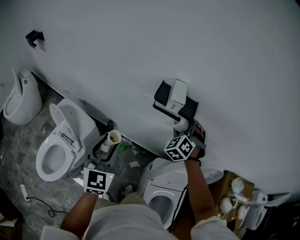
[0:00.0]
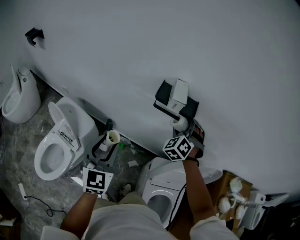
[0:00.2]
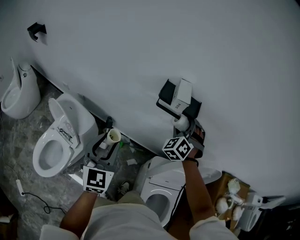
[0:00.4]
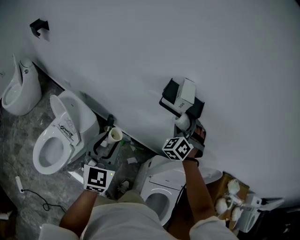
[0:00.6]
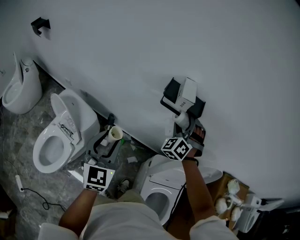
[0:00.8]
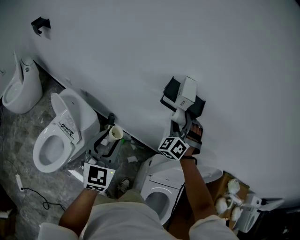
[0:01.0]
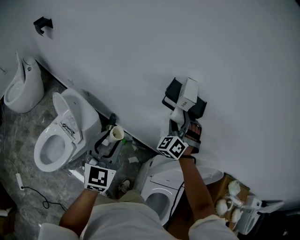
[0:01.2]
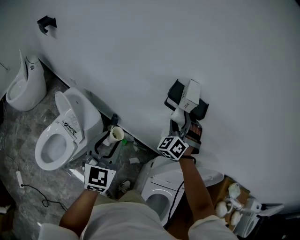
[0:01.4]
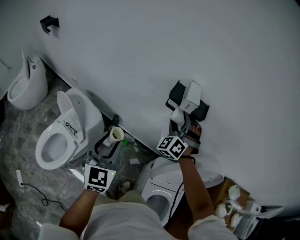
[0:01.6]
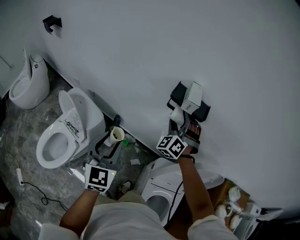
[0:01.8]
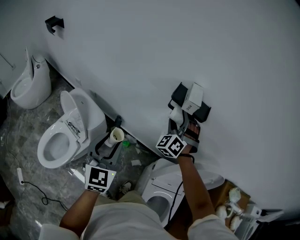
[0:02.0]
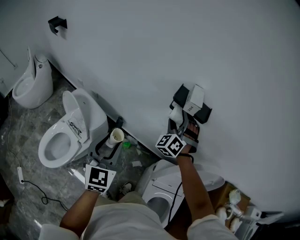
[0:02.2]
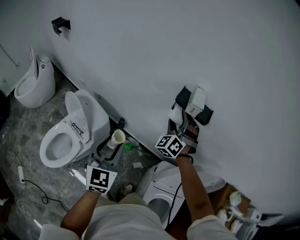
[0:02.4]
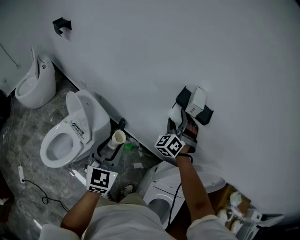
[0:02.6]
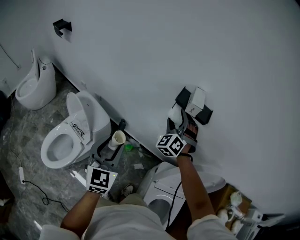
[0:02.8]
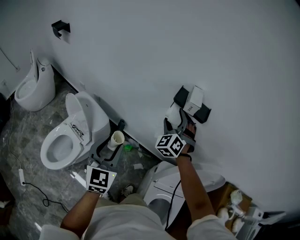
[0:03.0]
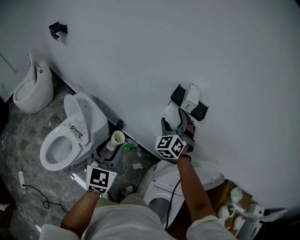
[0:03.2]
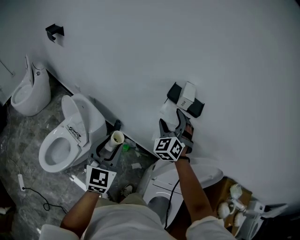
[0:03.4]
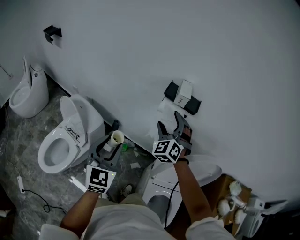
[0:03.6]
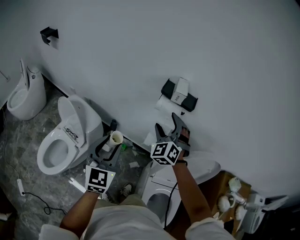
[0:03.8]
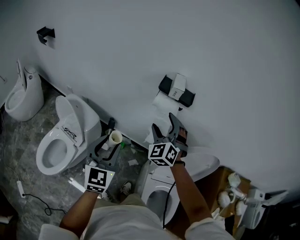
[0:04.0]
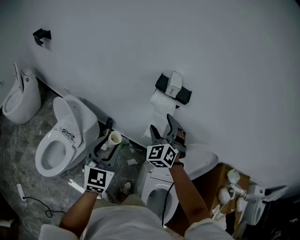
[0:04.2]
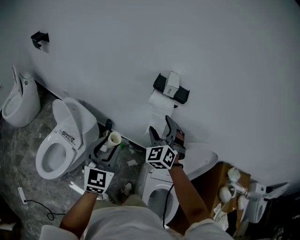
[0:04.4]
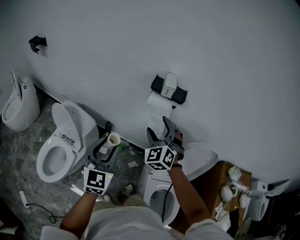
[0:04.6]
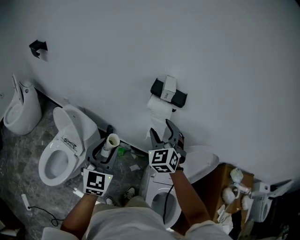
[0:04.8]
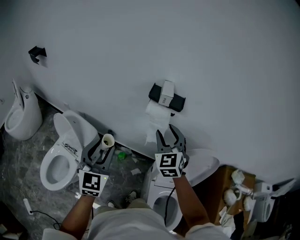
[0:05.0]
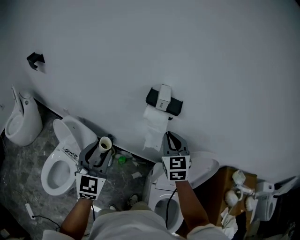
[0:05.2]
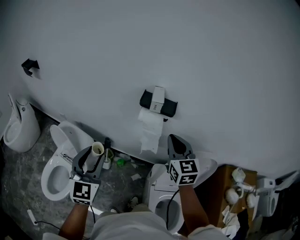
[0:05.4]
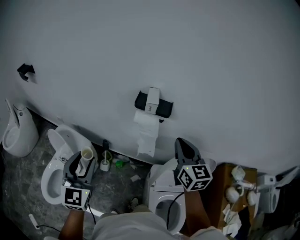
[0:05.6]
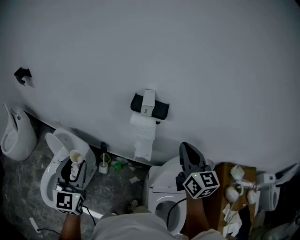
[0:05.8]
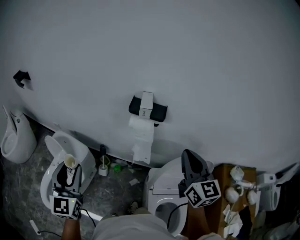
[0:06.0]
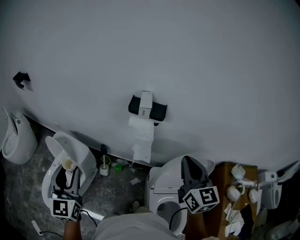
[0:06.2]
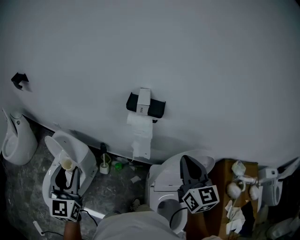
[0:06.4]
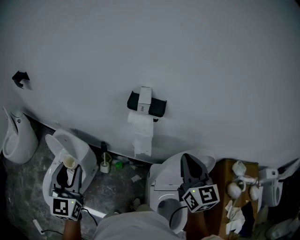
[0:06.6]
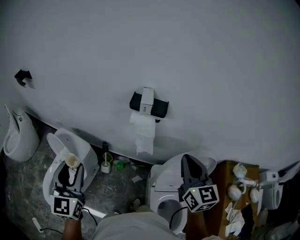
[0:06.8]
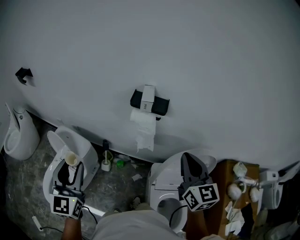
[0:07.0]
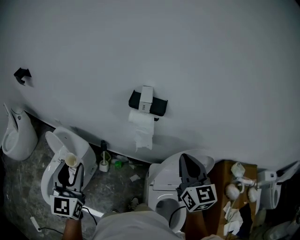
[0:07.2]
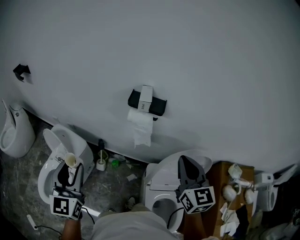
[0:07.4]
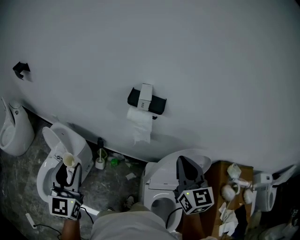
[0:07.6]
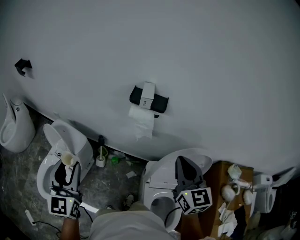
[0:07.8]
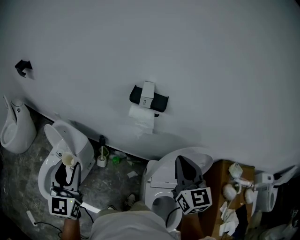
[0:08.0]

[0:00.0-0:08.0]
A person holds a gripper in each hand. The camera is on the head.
0:00.0 to 0:01.6: The right gripper heads to the left, covering roughly 10 cm.
0:01.6 to 0:03.2: The right gripper travels to the left by approximately 5 cm.
0:03.2 to 0:04.8: The right gripper shifts roughly 10 cm backward.
0:04.8 to 0:06.4: The right gripper goes approximately 20 cm to the right, backward and upward, rolls clockwise, seen from behind, by about 50 degrees, and closes. The left gripper is displaced to the left and upward by approximately 10 cm.
0:06.4 to 0:08.0: There are only small adjustments of the grippers.

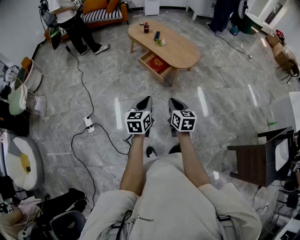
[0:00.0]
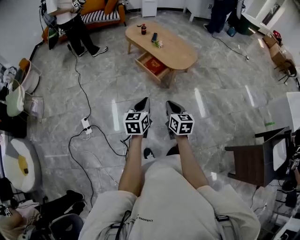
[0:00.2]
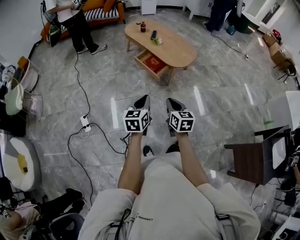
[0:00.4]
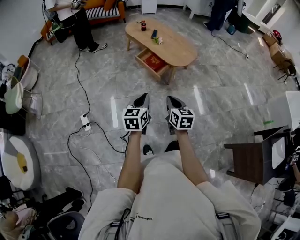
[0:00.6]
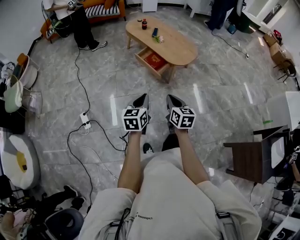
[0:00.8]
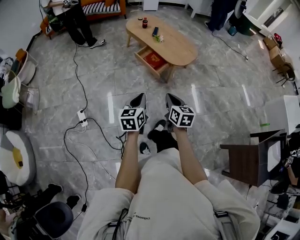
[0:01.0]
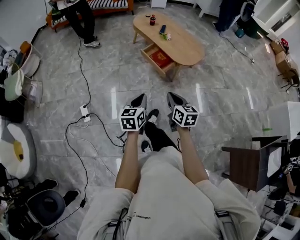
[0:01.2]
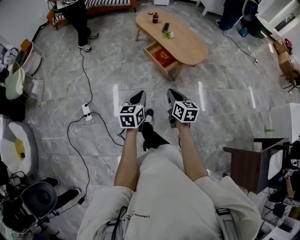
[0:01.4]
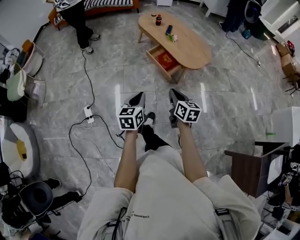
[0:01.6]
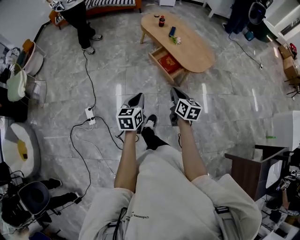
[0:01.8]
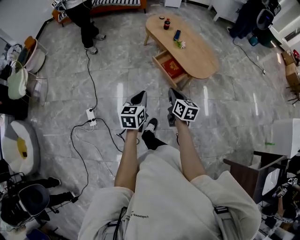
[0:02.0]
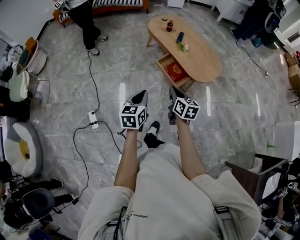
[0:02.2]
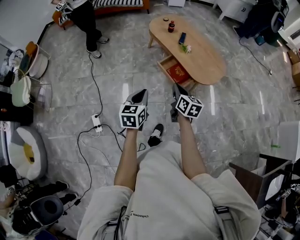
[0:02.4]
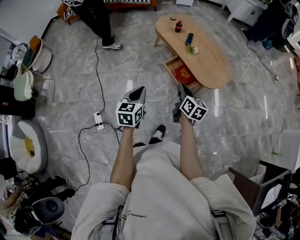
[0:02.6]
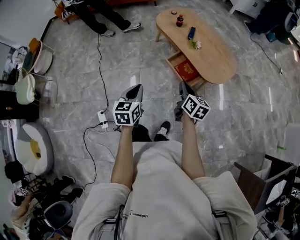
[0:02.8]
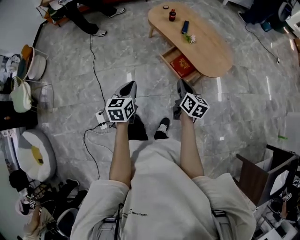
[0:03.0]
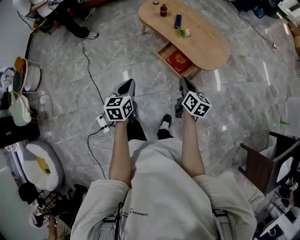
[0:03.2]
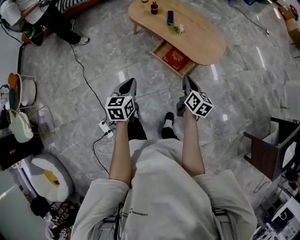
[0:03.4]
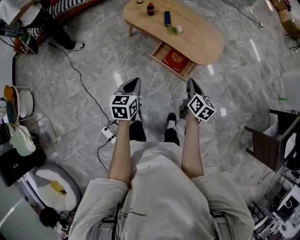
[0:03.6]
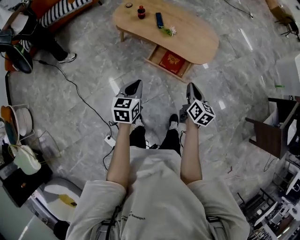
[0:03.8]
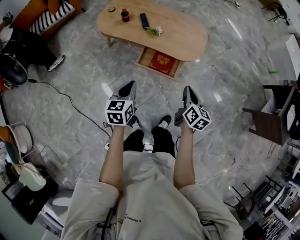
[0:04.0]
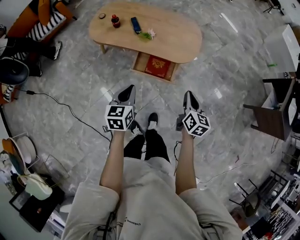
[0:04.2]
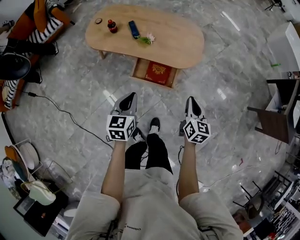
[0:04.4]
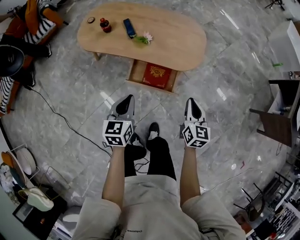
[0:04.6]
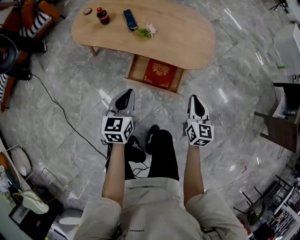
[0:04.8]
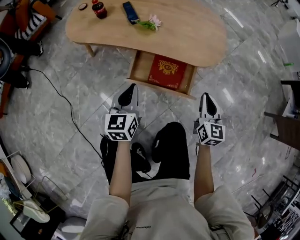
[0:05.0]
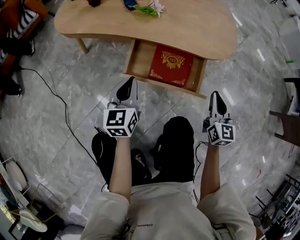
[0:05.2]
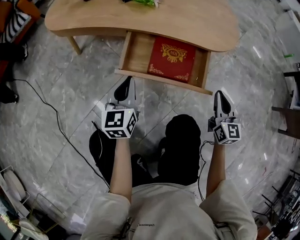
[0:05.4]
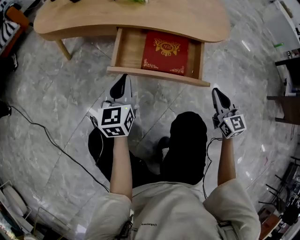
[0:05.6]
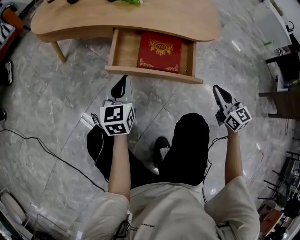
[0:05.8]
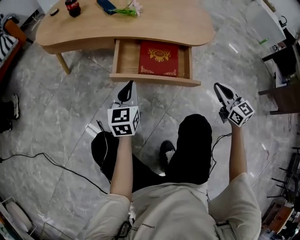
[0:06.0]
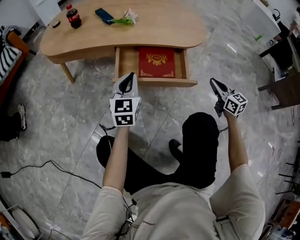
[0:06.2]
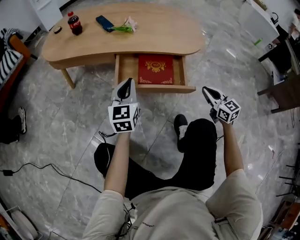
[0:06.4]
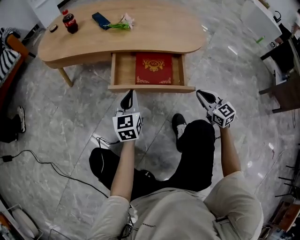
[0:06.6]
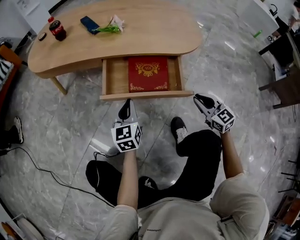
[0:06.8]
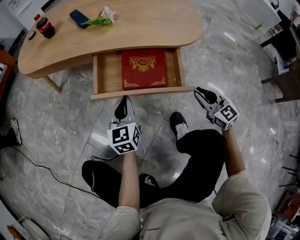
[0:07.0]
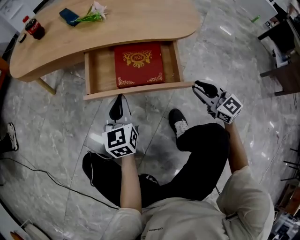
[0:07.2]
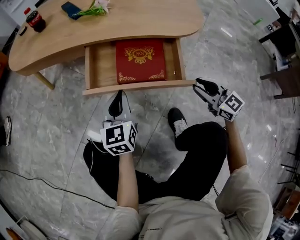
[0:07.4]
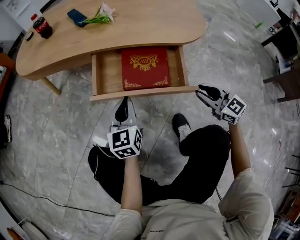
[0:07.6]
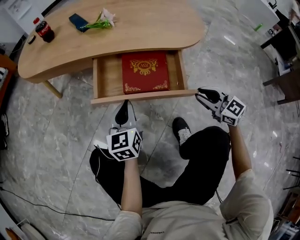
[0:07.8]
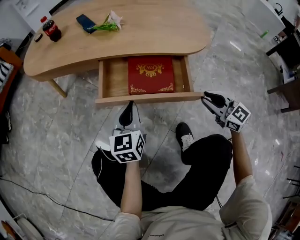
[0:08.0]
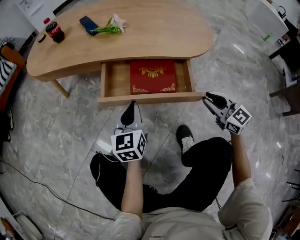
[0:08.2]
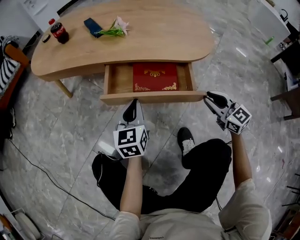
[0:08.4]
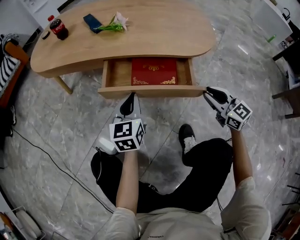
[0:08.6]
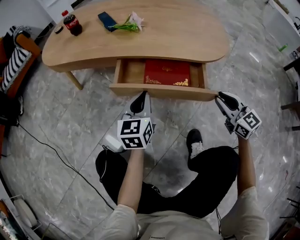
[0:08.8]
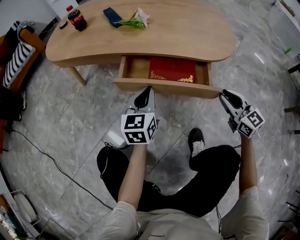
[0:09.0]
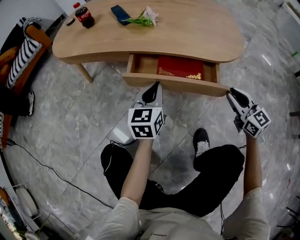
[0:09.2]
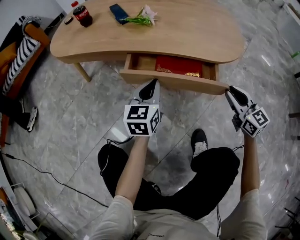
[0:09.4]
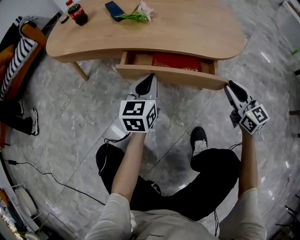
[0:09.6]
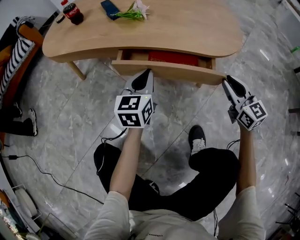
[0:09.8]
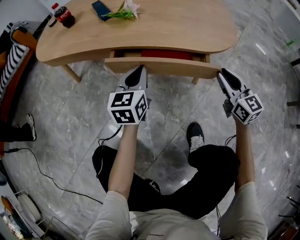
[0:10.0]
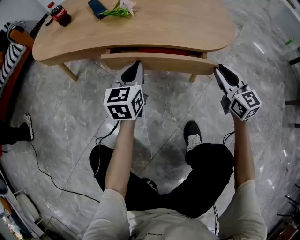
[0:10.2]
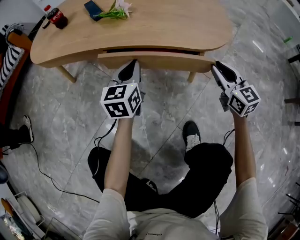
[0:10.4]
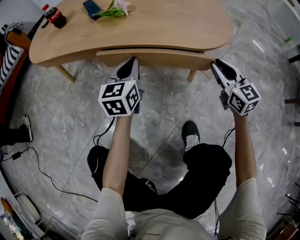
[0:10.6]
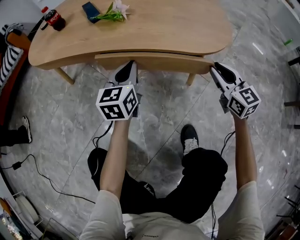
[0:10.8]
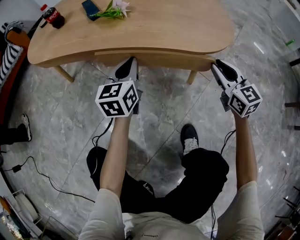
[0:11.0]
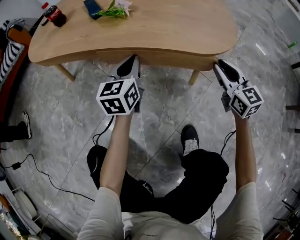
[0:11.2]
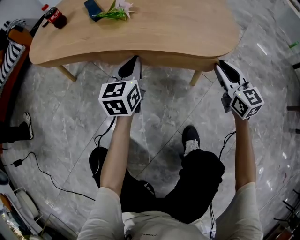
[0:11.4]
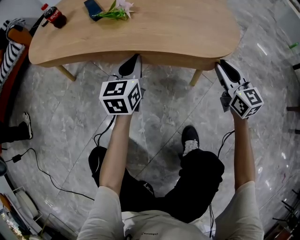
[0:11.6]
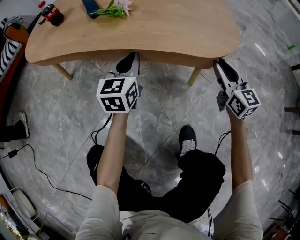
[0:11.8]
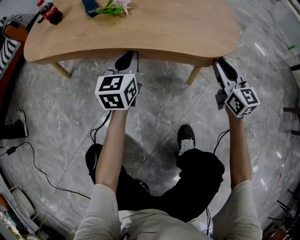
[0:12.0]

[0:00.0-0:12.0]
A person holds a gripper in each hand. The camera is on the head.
0:00.0 to 0:01.6: The right gripper goes approximately 10 cm forward and to the left. The left gripper heads to the left and forward, covering some 10 cm.
0:01.6 to 0:03.0: The left gripper shifts about 30 cm forward and to the left; the right gripper shifts about 25 cm forward.
0:03.0 to 0:04.4: The left gripper ends up some 25 cm from where it was, and changes its angle by roughly 40 degrees. Meanwhile the right gripper ends up about 10 cm from where it was, and turns by some 40 degrees.
0:04.4 to 0:06.0: The two grippers go about 40 cm downward. The right gripper swivels some 30 degrees.
0:06.0 to 0:07.6: The right gripper heads downward, covering about 10 cm. The left gripper ends up about 5 cm from where it was.
0:07.6 to 0:09.0: The right gripper shifts by approximately 5 cm; the left gripper changes place by about 5 cm.
0:09.0 to 0:10.4: The grippers both shift forward by about 10 cm.
0:10.4 to 0:12.0: The two grippers go approximately 5 cm forward.

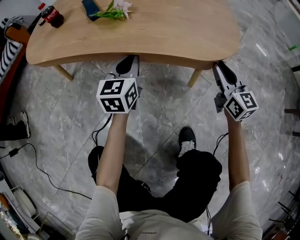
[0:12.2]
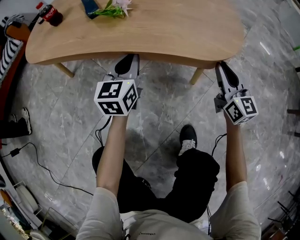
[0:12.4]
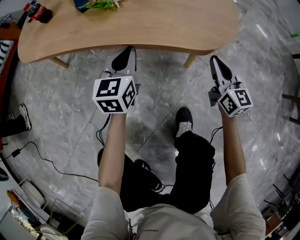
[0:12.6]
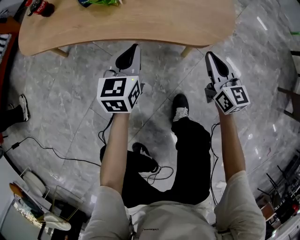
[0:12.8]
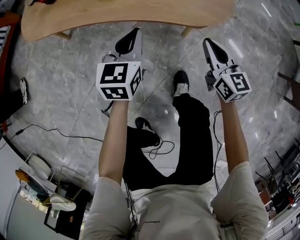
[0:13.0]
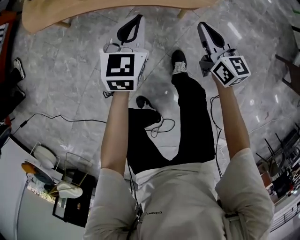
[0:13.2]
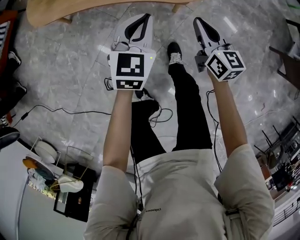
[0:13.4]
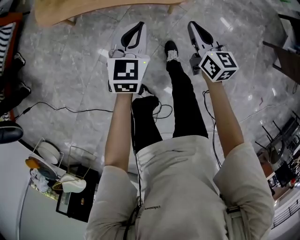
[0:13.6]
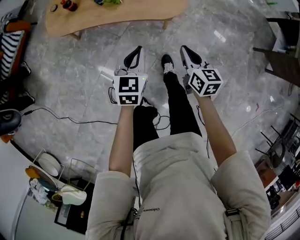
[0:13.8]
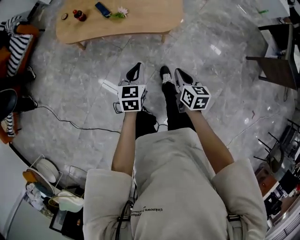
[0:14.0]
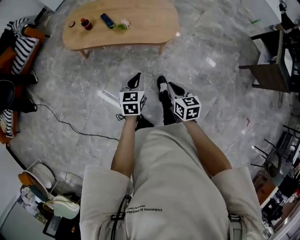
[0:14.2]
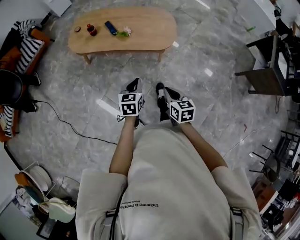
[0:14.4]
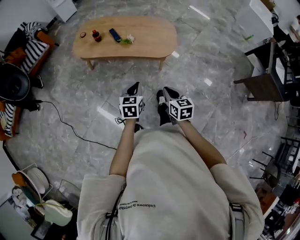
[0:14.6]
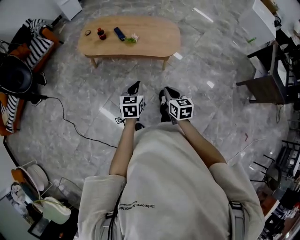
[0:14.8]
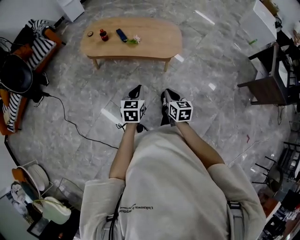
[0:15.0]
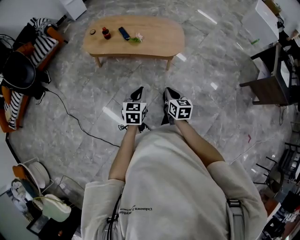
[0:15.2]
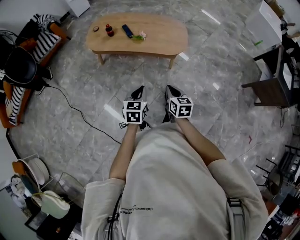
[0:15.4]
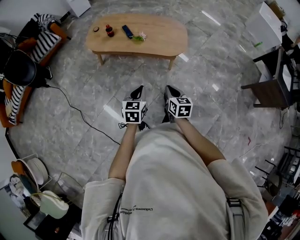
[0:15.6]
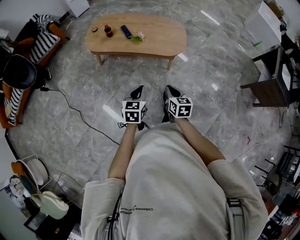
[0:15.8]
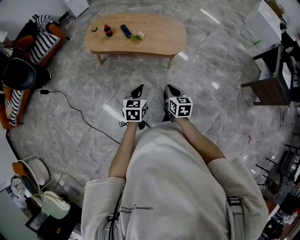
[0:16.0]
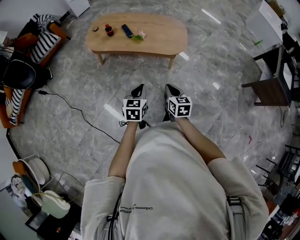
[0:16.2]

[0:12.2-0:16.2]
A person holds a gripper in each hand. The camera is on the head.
0:12.2 to 0:13.6: The two grippers go about 35 cm upward and backward. The right gripper changes its angle by about 20 degrees.
0:13.6 to 0:14.8: Both grippers move backward and upward, about 25 cm.
0:14.8 to 0:16.2: The grippers move only a little.
